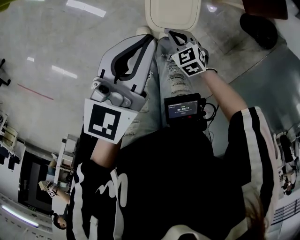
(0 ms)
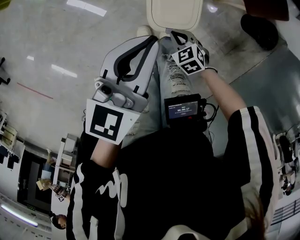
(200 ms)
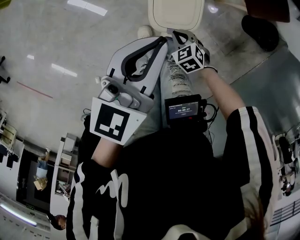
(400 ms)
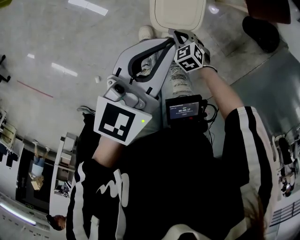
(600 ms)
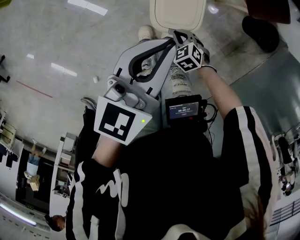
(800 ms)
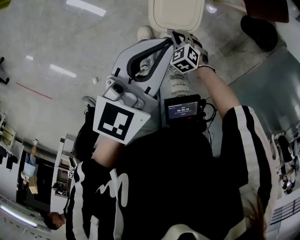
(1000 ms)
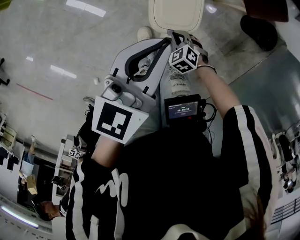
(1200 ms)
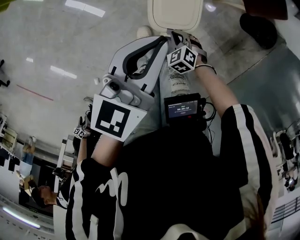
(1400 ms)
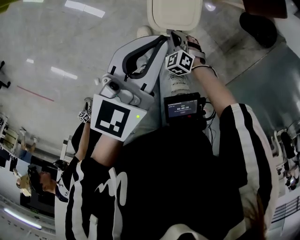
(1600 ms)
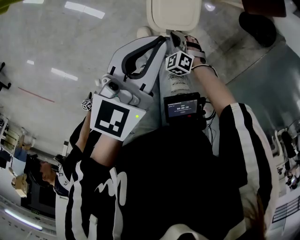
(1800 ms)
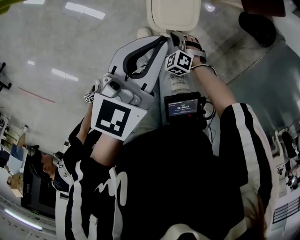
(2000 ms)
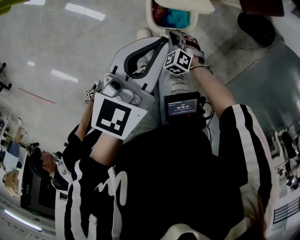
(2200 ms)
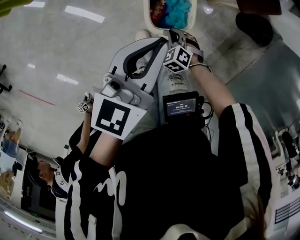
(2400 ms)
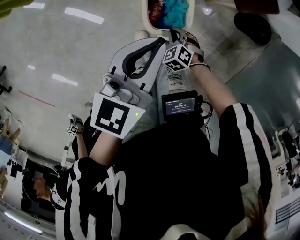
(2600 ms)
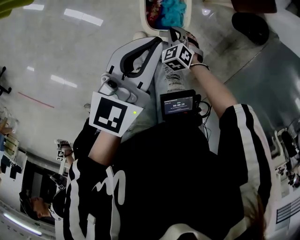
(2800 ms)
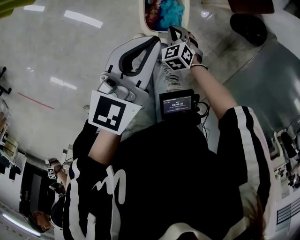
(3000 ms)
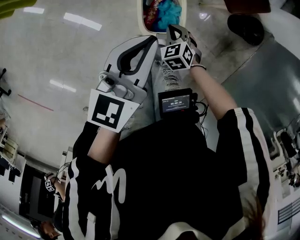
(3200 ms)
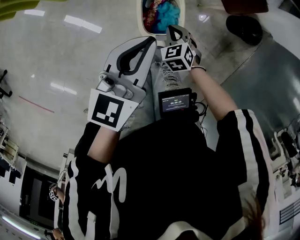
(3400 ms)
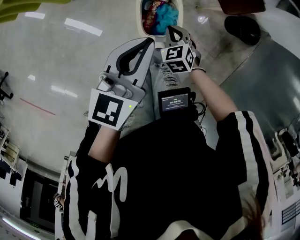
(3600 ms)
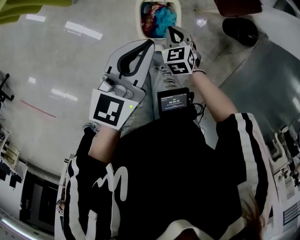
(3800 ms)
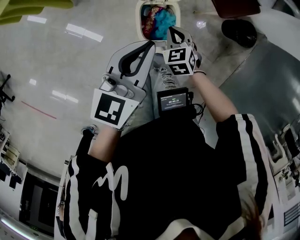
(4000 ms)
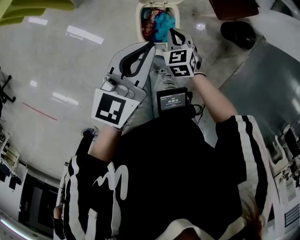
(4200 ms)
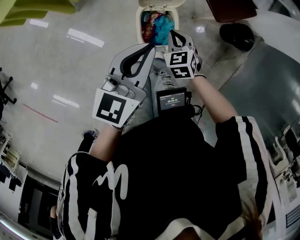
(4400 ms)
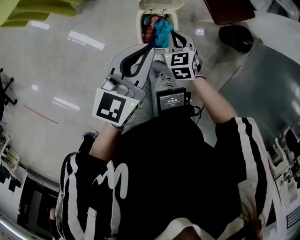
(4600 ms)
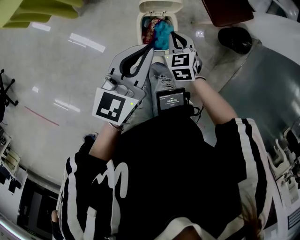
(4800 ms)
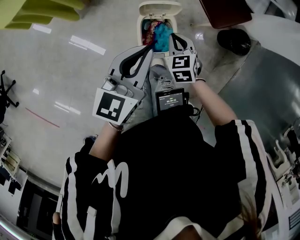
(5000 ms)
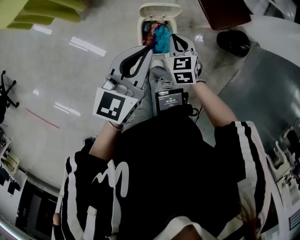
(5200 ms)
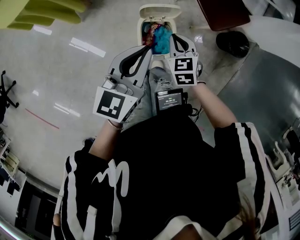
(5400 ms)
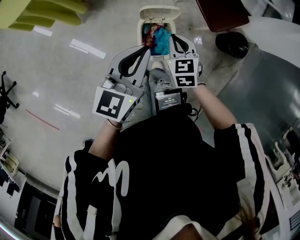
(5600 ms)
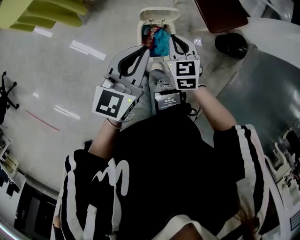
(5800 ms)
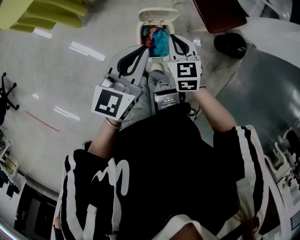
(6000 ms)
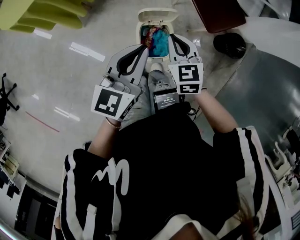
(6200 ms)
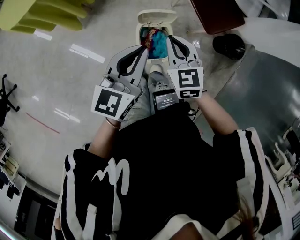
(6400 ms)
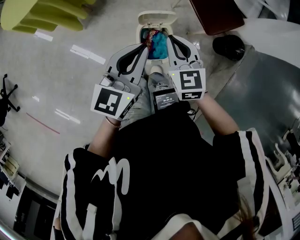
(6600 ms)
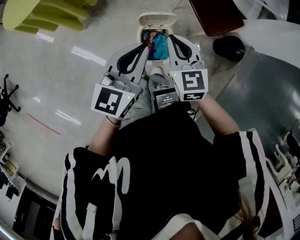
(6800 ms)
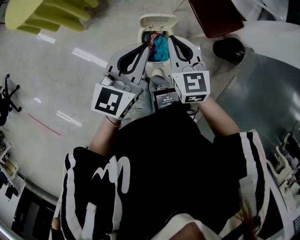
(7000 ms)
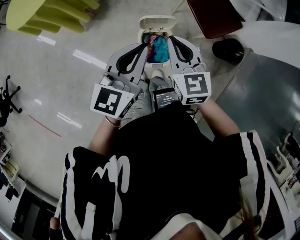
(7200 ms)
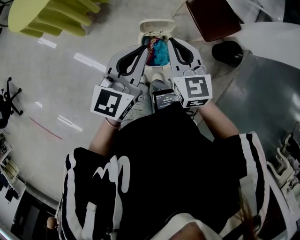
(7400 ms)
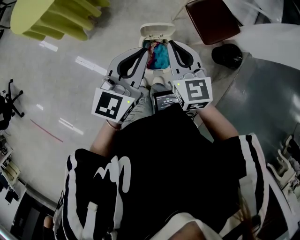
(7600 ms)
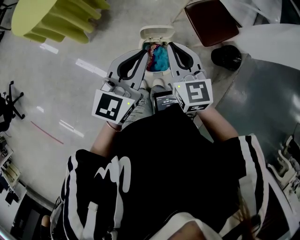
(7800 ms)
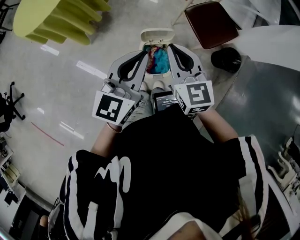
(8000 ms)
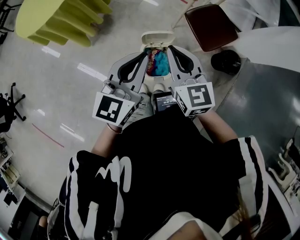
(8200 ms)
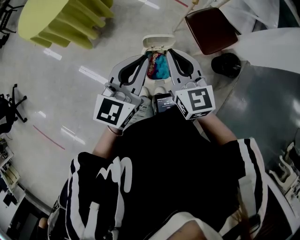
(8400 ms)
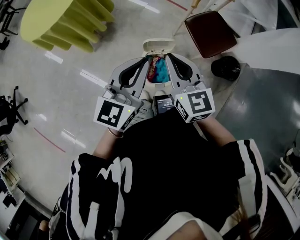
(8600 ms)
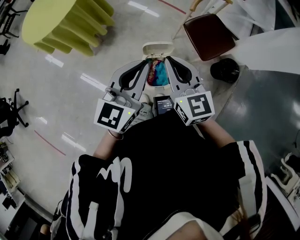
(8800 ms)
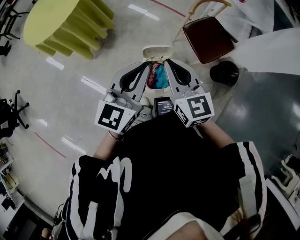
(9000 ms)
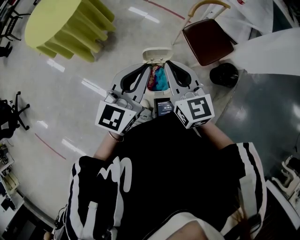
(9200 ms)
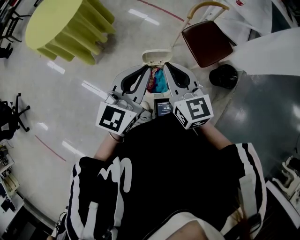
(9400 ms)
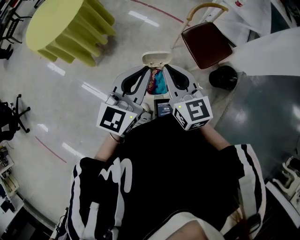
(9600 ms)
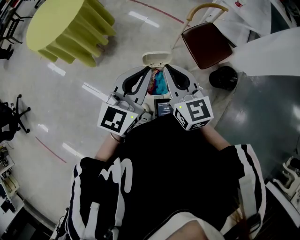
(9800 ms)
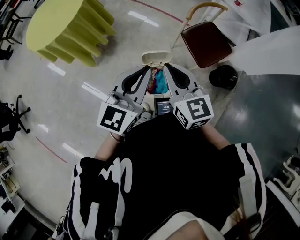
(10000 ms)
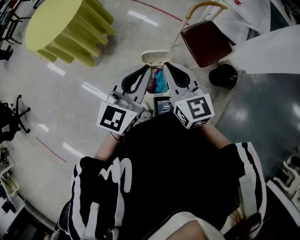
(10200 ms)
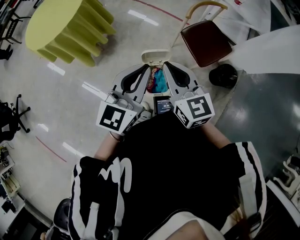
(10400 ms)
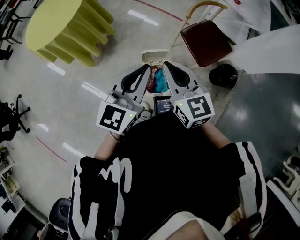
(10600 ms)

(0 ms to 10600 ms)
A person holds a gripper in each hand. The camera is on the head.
0 ms - 1600 ms: The right gripper moves downward, roughly 5 cm, and turns by roughly 30 degrees.
1600 ms - 3000 ms: The right gripper heads forward and upward, covering some 10 cm.
3000 ms - 4600 ms: The right gripper goes roughly 15 cm upward, and turns by approximately 20 degrees. Meanwhile the left gripper shifts roughly 5 cm upward.
4600 ms - 6000 ms: The right gripper heads upward, covering some 10 cm.
6000 ms - 7600 ms: The right gripper shifts approximately 15 cm upward. The left gripper travels upward by roughly 5 cm.
7600 ms - 9000 ms: The grippers both shift upward by some 5 cm.
9000 ms - 10600 ms: The grippers make only small movements.

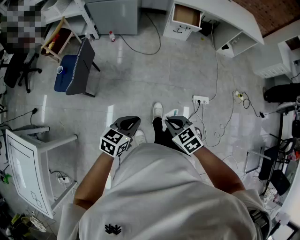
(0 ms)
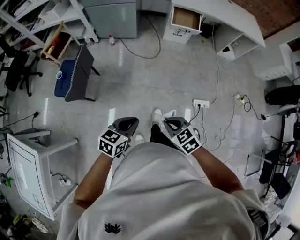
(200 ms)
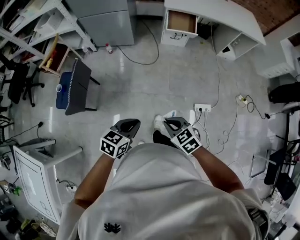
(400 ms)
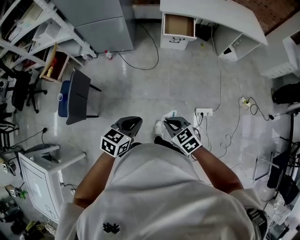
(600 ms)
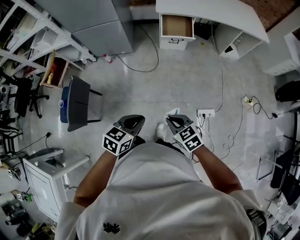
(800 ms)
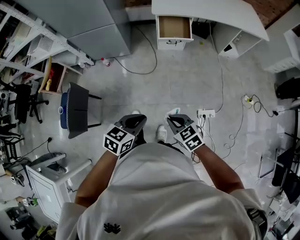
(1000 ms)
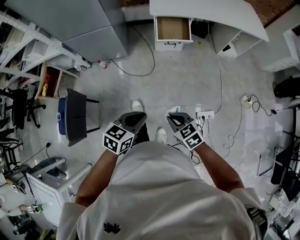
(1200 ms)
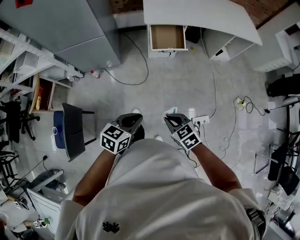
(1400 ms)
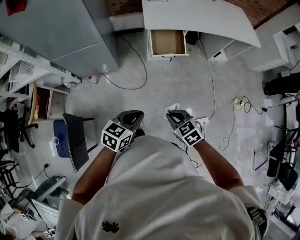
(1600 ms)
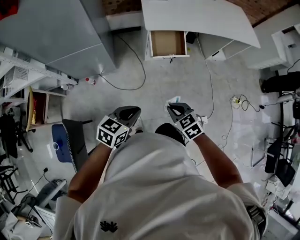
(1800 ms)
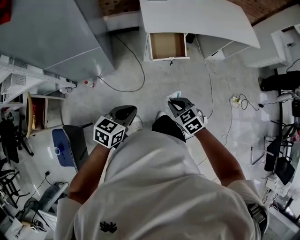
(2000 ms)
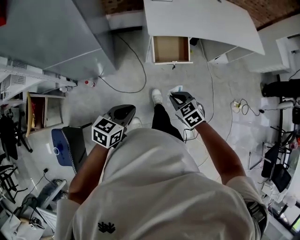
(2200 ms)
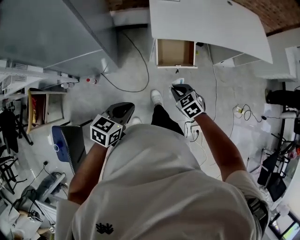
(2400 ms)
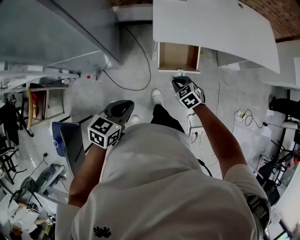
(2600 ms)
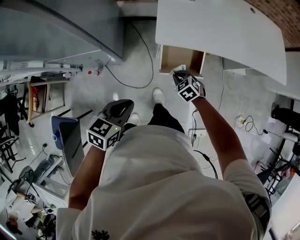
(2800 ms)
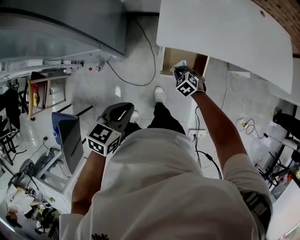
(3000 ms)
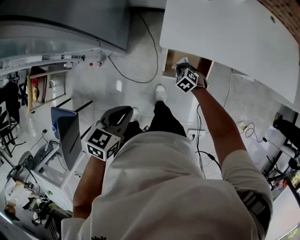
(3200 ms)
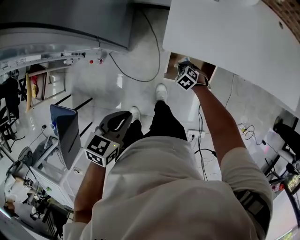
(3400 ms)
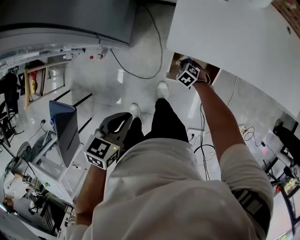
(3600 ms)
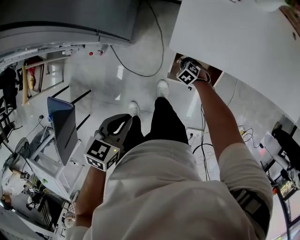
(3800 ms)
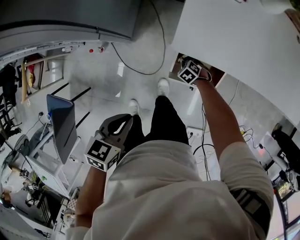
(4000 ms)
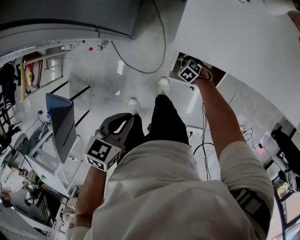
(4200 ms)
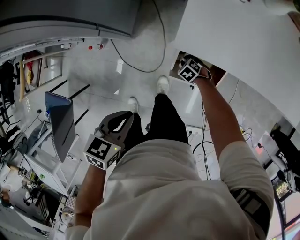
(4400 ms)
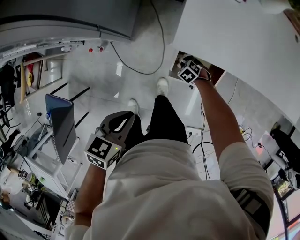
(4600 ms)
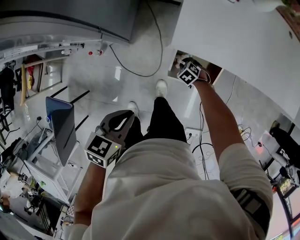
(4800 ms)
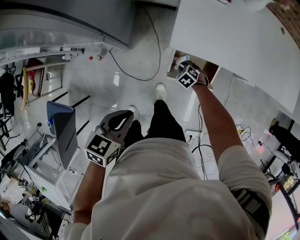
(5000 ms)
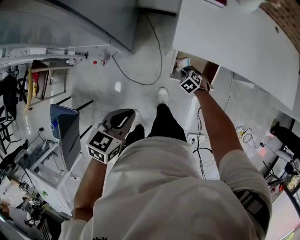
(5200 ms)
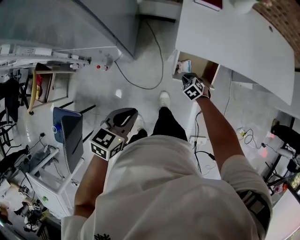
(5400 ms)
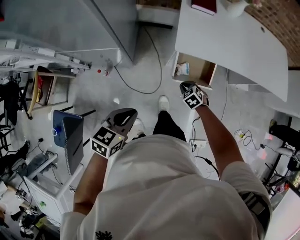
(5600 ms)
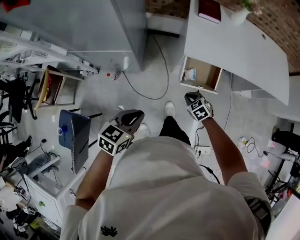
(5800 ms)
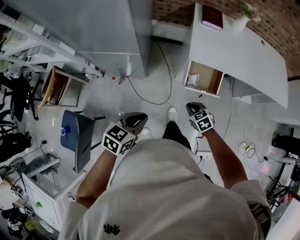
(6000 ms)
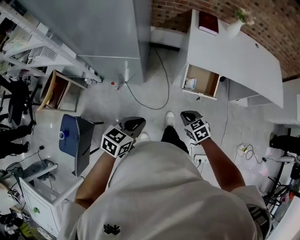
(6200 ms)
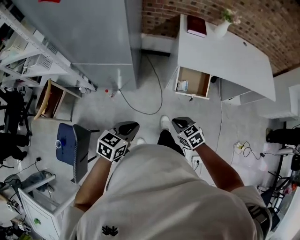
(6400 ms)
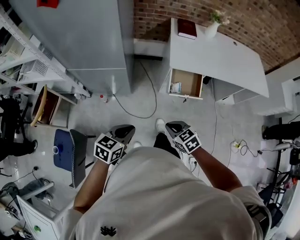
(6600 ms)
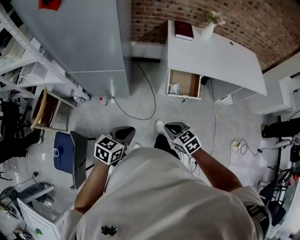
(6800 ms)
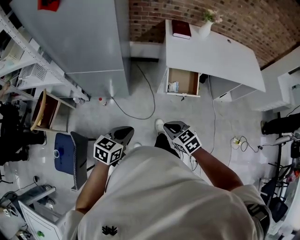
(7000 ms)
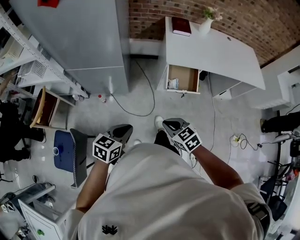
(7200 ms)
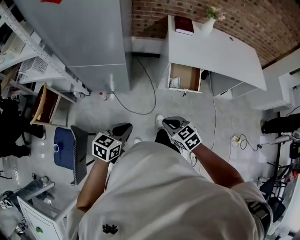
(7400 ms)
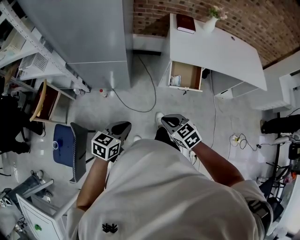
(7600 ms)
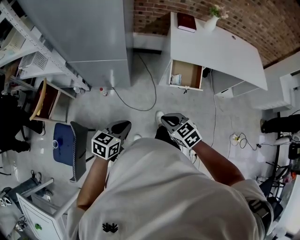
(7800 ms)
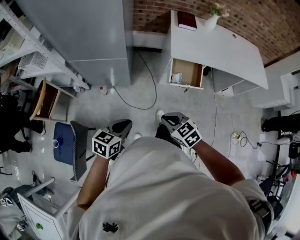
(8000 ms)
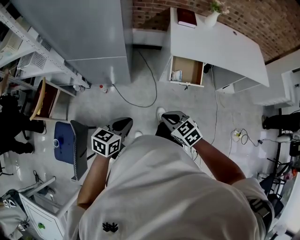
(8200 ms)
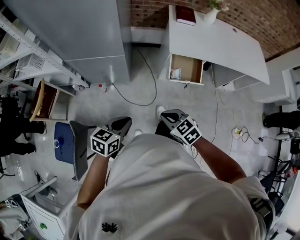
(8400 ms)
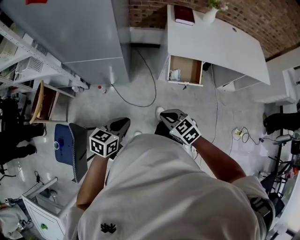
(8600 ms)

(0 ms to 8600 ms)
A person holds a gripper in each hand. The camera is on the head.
0 ms - 1400 ms: Both grippers are carried forward, about 50 cm.
1400 ms - 2800 ms: Both grippers are carried forward, some 50 cm.
2800 ms - 4400 ms: The right gripper is displaced downward by approximately 30 cm, and swivels approximately 30 degrees, while the left gripper goes approximately 10 cm downward.
4400 ms - 5800 ms: The right gripper is displaced upward by roughly 30 cm, and changes its angle by about 20 degrees, while the left gripper shifts by about 25 cm, and swivels approximately 20 degrees.
5800 ms - 7200 ms: The right gripper heads backward, upward and to the left, covering some 35 cm, while the left gripper is displaced backward and to the left by roughly 15 cm.
7200 ms - 8600 ms: The grippers make only small movements.

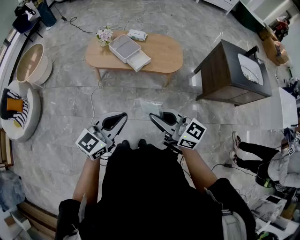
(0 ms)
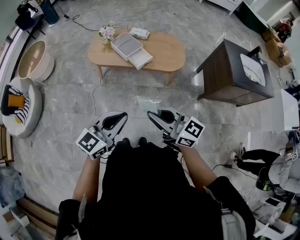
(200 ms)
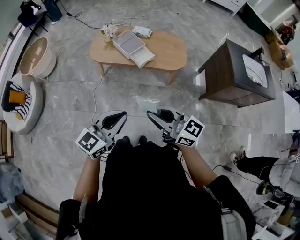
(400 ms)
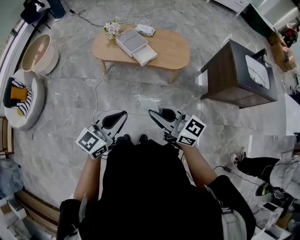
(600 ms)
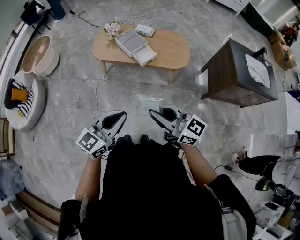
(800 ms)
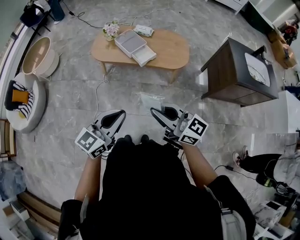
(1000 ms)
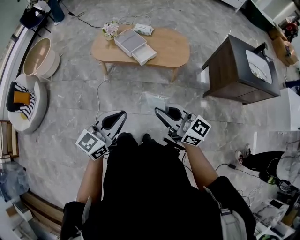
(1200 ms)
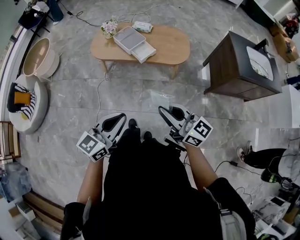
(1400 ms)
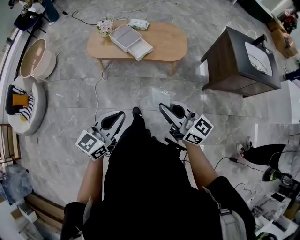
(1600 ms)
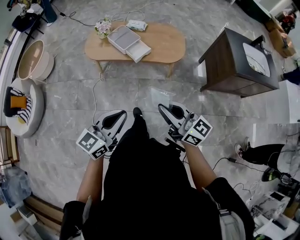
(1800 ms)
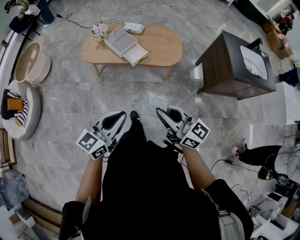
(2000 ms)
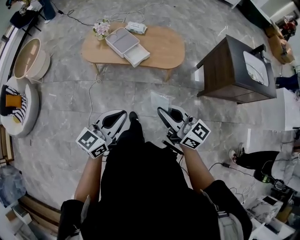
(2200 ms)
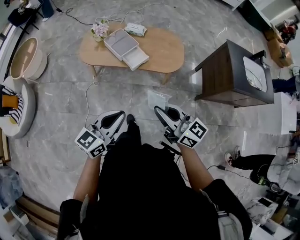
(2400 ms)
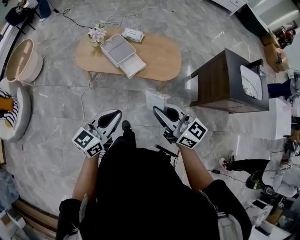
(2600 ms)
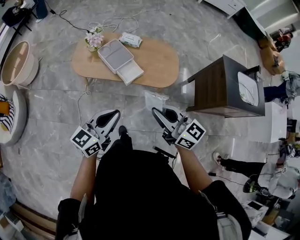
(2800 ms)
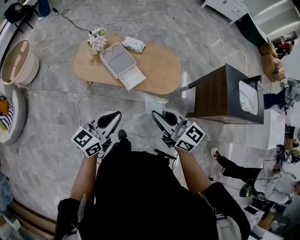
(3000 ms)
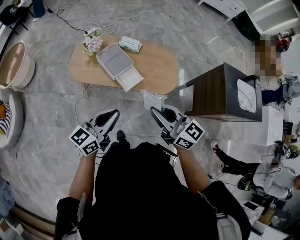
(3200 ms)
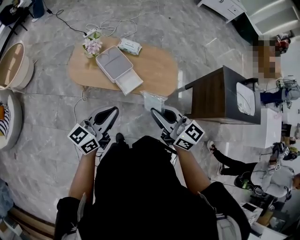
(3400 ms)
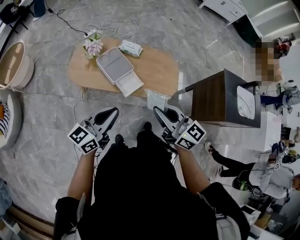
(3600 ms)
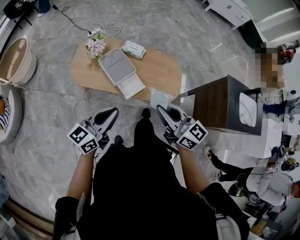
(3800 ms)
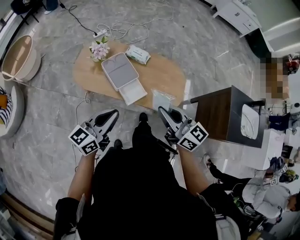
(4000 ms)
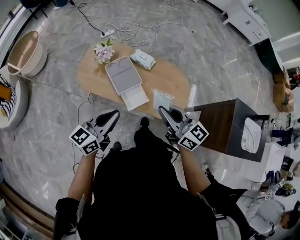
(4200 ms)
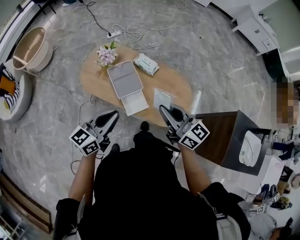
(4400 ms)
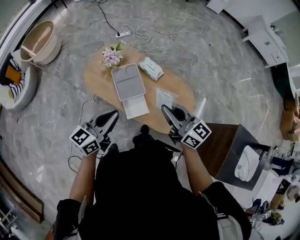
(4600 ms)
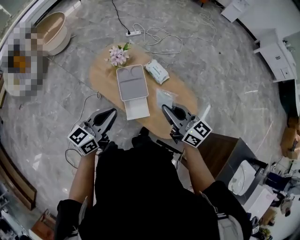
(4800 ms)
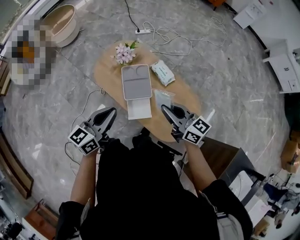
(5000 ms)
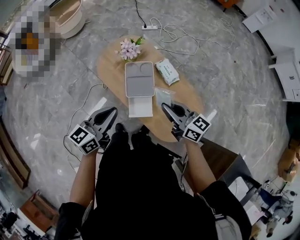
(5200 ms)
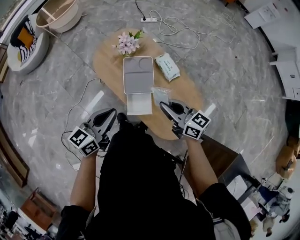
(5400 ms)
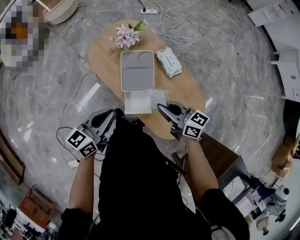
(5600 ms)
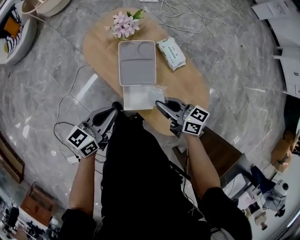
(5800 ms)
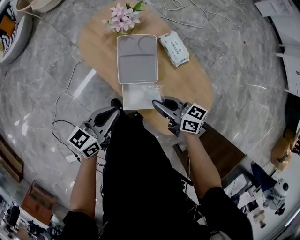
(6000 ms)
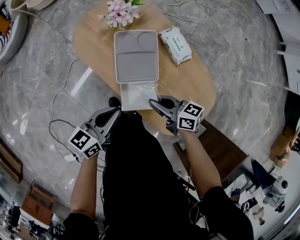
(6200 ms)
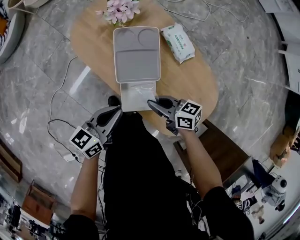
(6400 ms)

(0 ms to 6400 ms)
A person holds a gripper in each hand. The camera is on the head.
0 ms - 1600 ms: The right gripper travels to the right by about 5 cm.
1600 ms - 3200 ms: Both grippers move forward, approximately 30 cm.
3200 ms - 4800 ms: The left gripper changes place by approximately 25 cm, and turns by approximately 30 degrees. The right gripper changes place by approximately 35 cm, and swivels about 30 degrees.
4800 ms - 6400 ms: Both grippers travel together downward, some 35 cm. The right gripper changes its angle by approximately 40 degrees.
